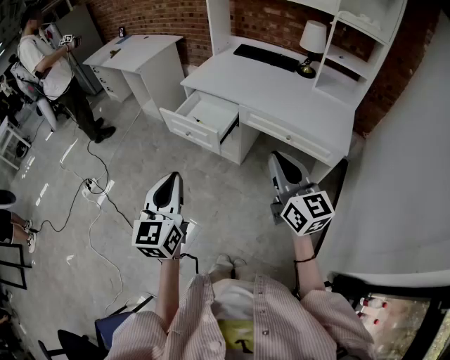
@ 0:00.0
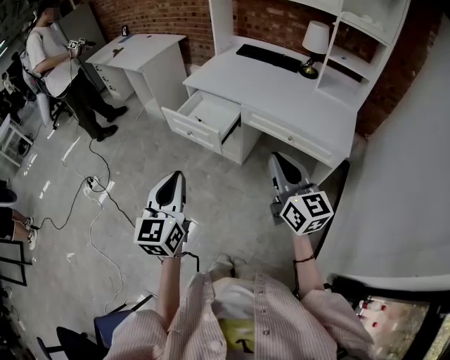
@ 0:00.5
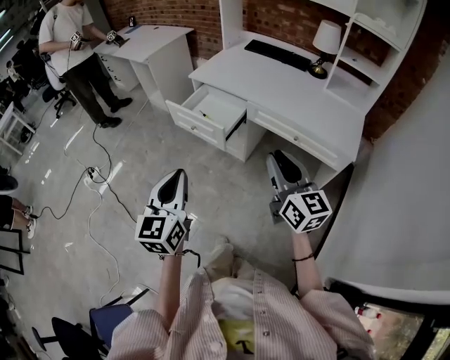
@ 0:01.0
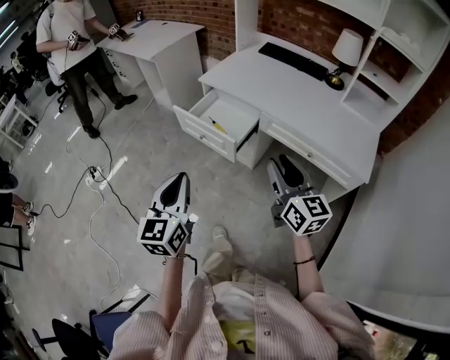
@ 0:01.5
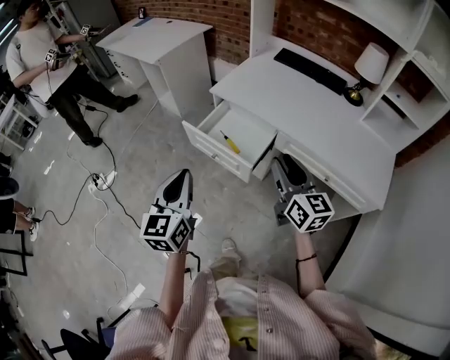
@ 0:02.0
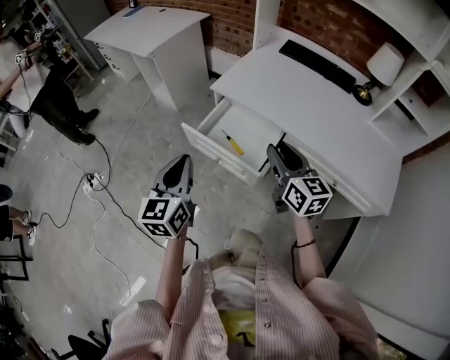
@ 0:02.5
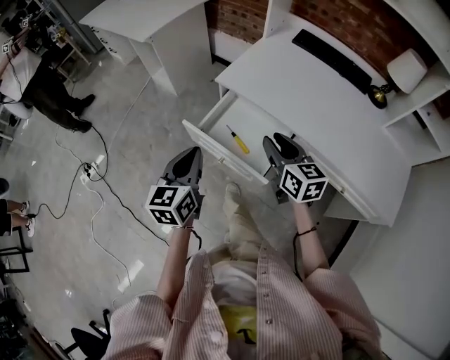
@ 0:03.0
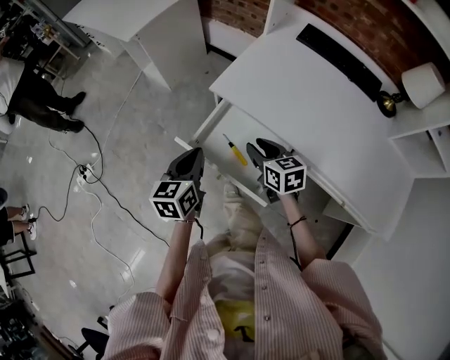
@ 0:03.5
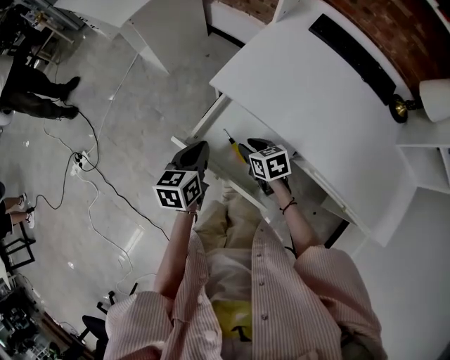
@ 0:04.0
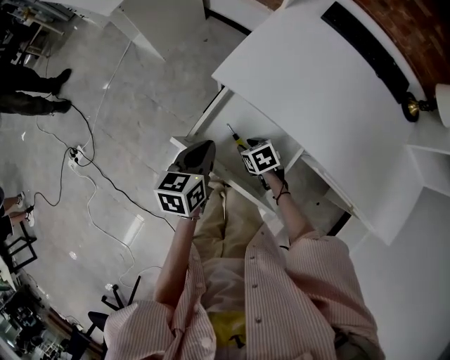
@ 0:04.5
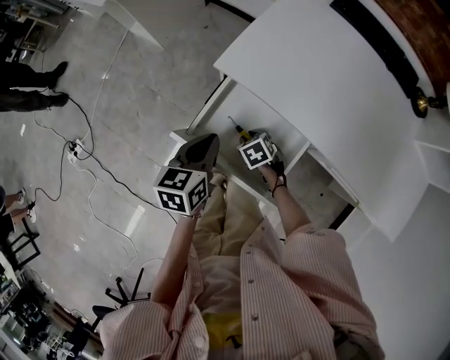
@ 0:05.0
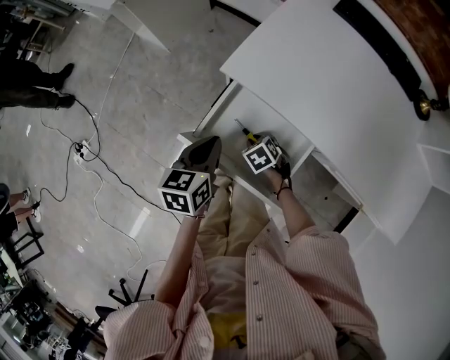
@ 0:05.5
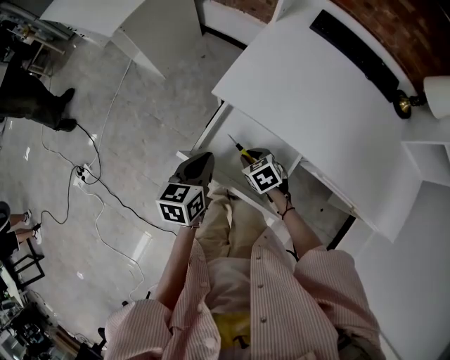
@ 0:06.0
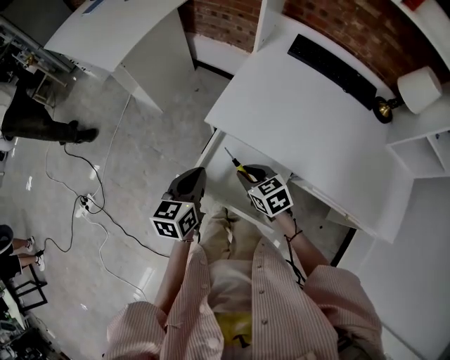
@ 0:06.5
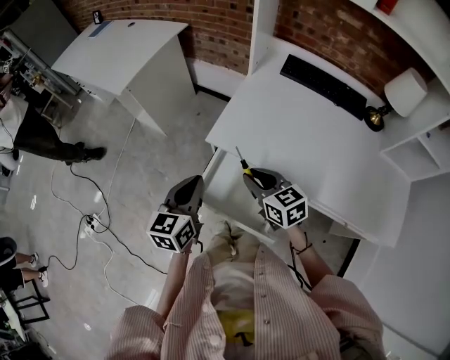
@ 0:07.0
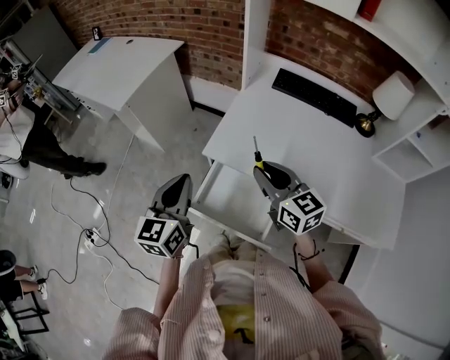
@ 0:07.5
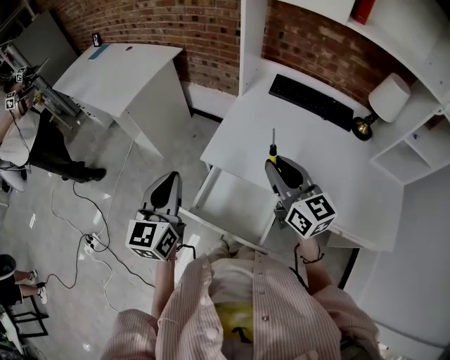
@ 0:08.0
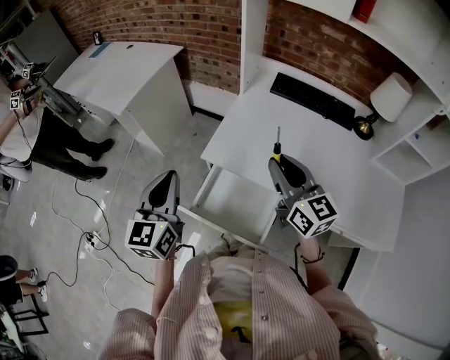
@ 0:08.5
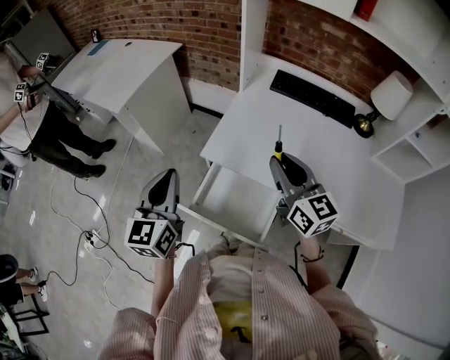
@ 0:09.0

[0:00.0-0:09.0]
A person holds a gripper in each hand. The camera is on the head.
0:00.0 to 0:02.0: Both grippers move forward, about 25 cm. The right gripper opens up.
0:02.0 to 0:04.5: The left gripper shifts some 40 cm forward and downward, and changes its angle by approximately 40 degrees. Meanwhile the right gripper shifts about 50 cm downward and forward, and points its fingers approximately 60 degrees further downward.
0:04.5 to 0:07.0: The left gripper is displaced upward by about 15 cm, and turns by approximately 20 degrees. Meanwhile the right gripper heads upward, covering some 25 cm, and points its fingers some 40 degrees further upward.
0:07.0 to 0:09.0: The left gripper heads upward, covering some 10 cm, while the right gripper shifts approximately 15 cm upward and to the right, and rotates some 30 degrees.

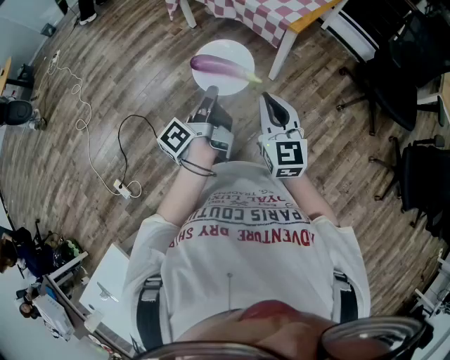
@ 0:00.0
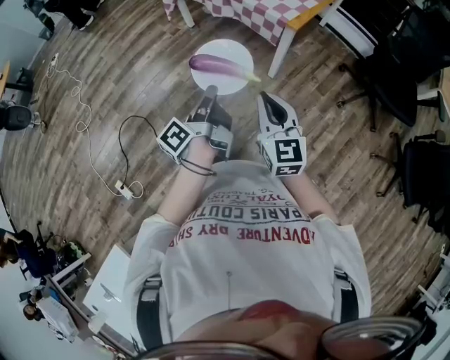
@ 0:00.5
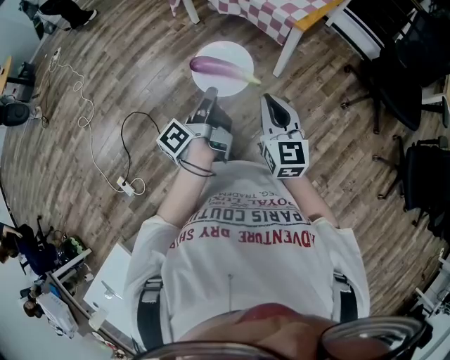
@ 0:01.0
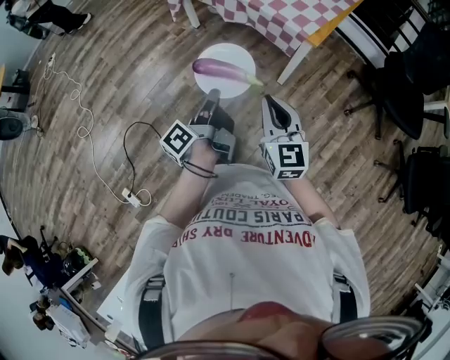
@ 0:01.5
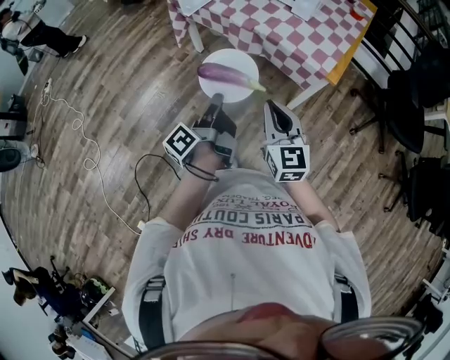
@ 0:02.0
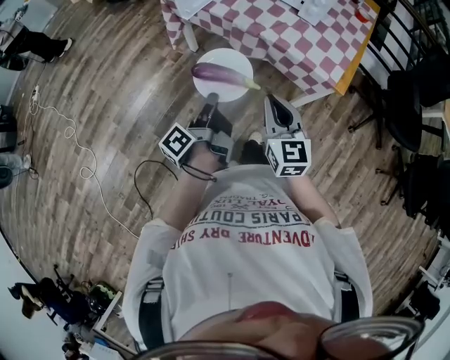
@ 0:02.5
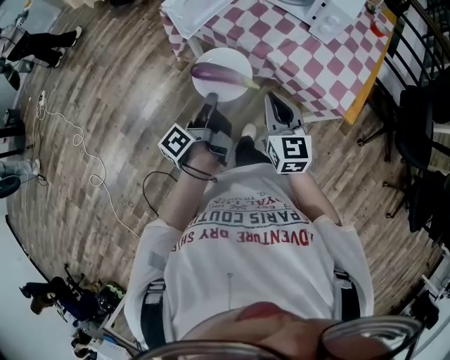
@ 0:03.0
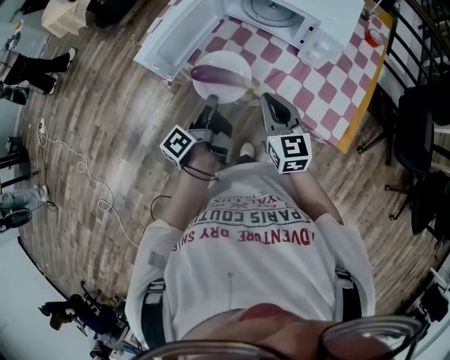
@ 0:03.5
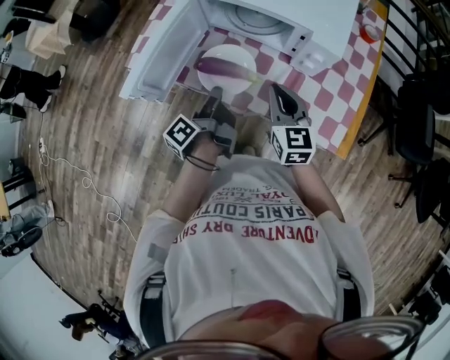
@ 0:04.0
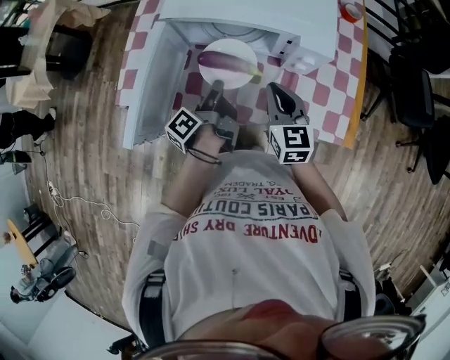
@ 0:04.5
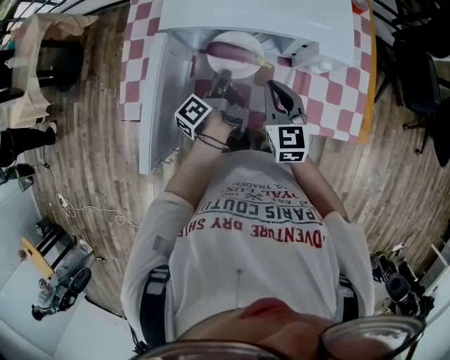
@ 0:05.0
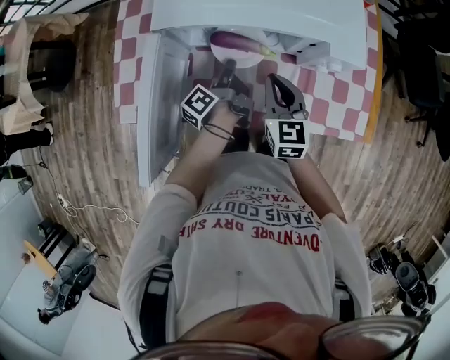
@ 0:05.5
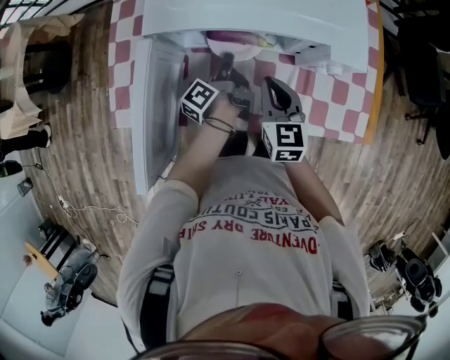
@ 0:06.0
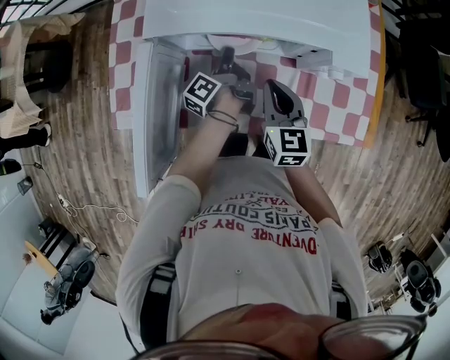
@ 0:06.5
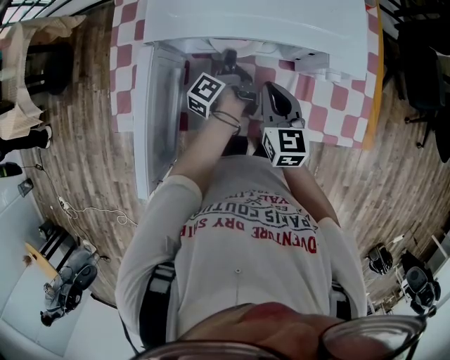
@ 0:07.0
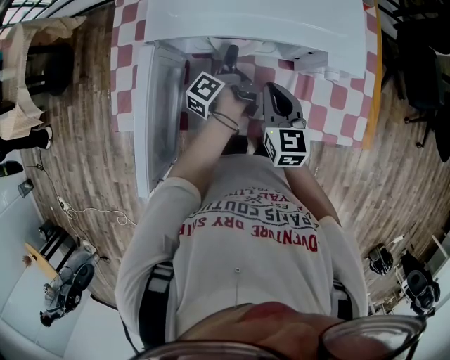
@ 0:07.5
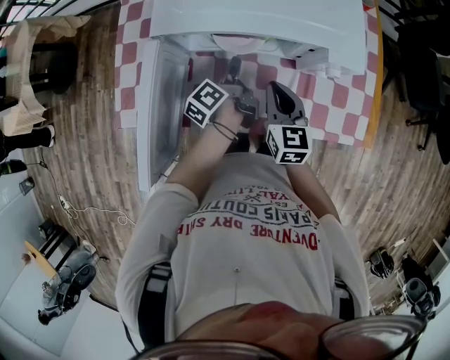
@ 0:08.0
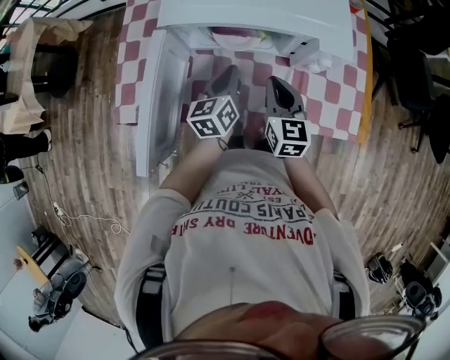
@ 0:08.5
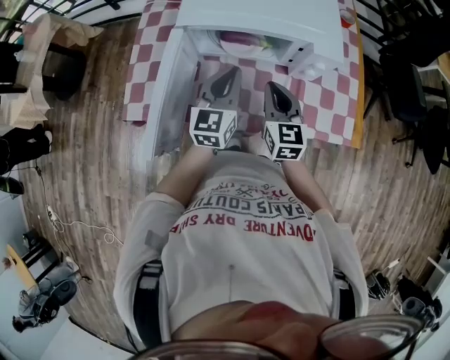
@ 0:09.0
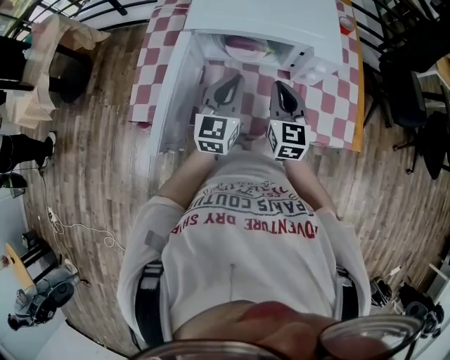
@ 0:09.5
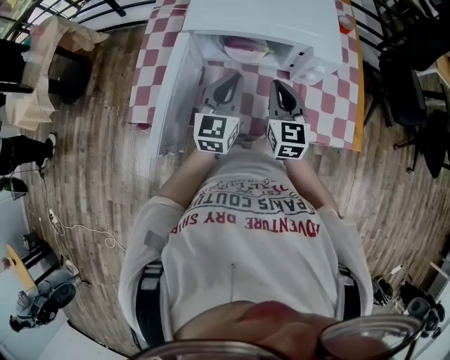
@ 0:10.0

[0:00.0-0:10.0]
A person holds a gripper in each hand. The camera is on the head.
0:00.0 to 0:02.0: The right gripper ends up approximately 30 cm from where it was.
0:02.0 to 0:04.0: The right gripper moves some 50 cm.
0:04.0 to 0:06.0: The right gripper ends up about 15 cm from where it was, and swivels some 20 degrees.
0:08.0 to 0:10.0: The right gripper shifts approximately 10 cm upward.

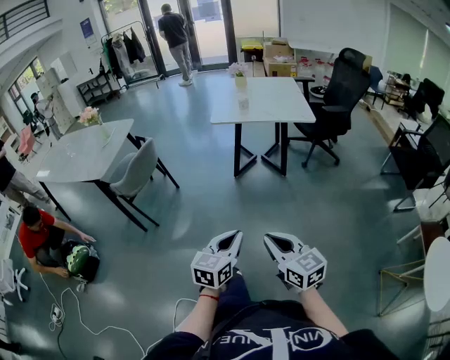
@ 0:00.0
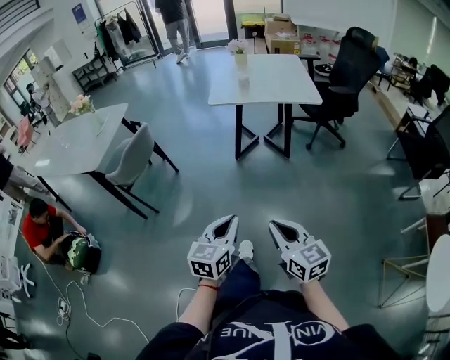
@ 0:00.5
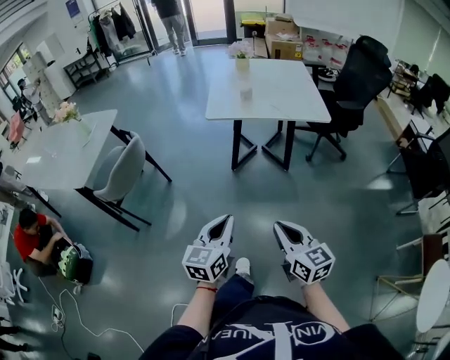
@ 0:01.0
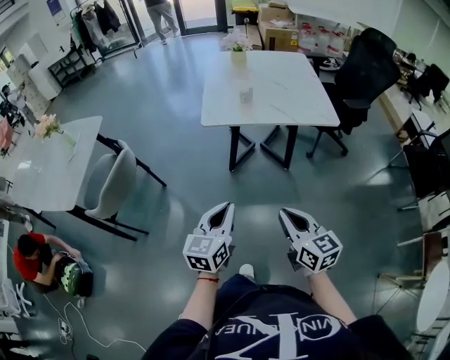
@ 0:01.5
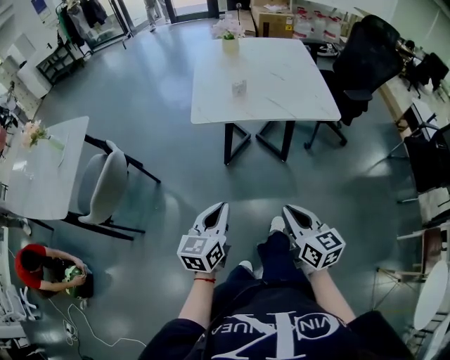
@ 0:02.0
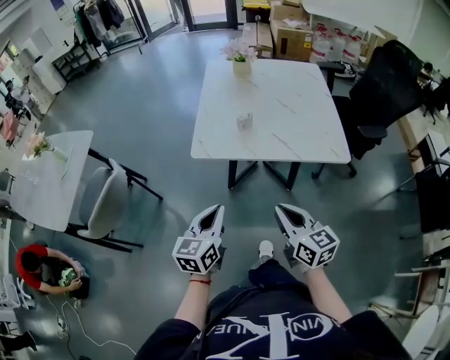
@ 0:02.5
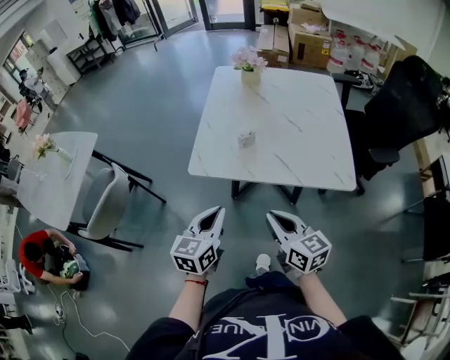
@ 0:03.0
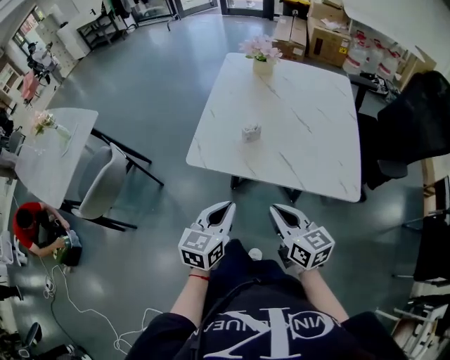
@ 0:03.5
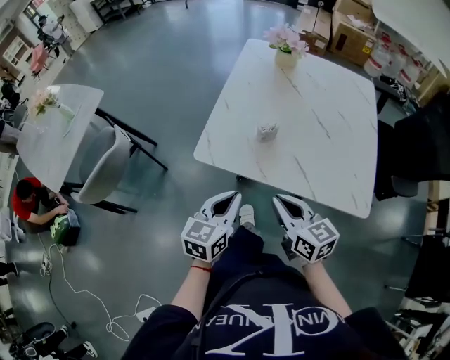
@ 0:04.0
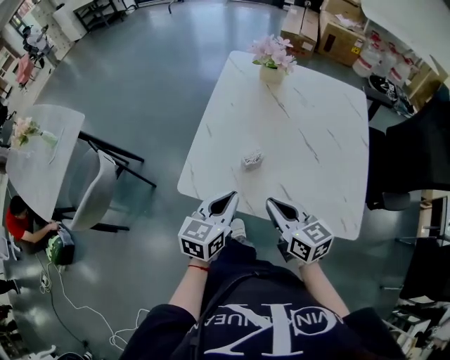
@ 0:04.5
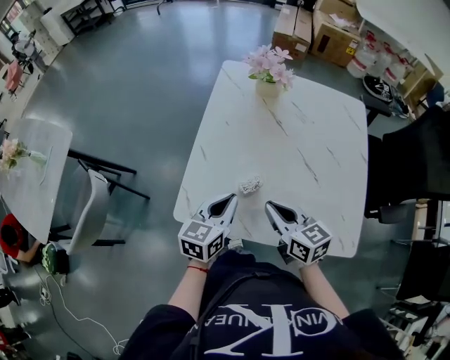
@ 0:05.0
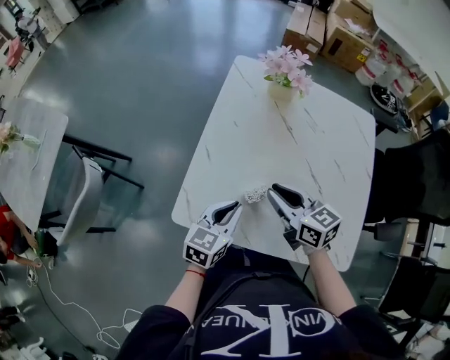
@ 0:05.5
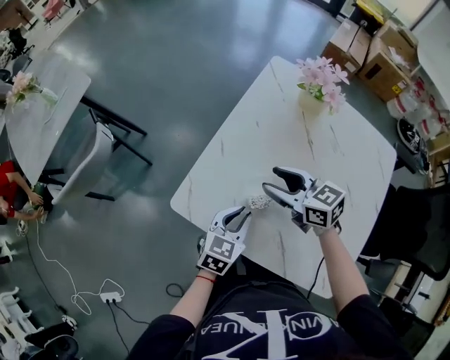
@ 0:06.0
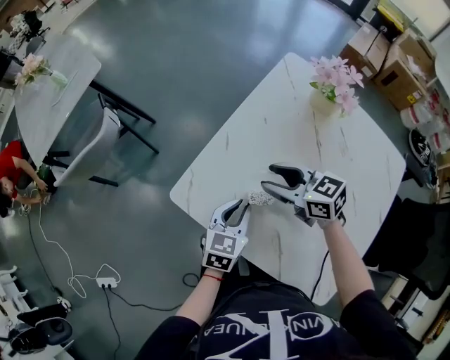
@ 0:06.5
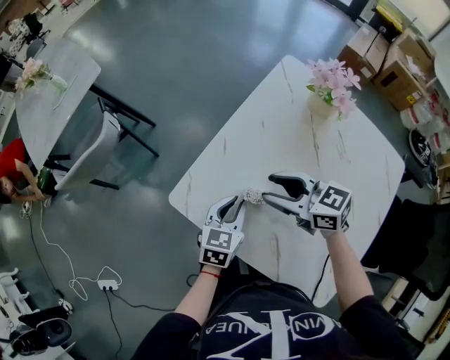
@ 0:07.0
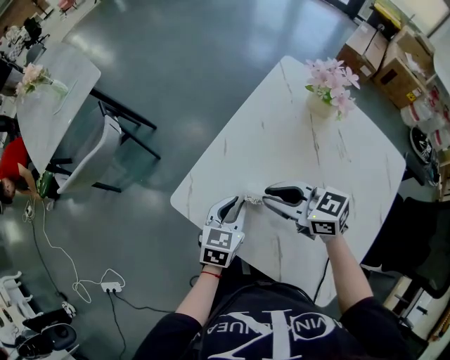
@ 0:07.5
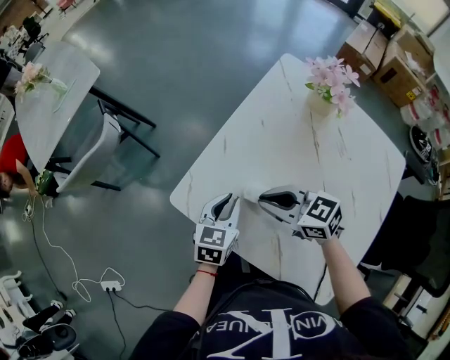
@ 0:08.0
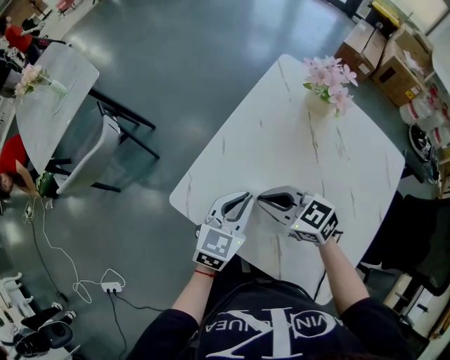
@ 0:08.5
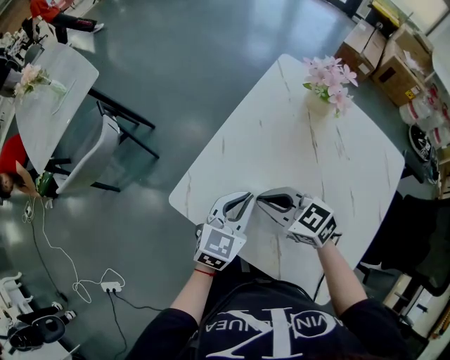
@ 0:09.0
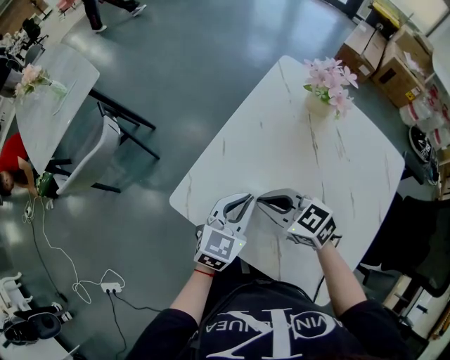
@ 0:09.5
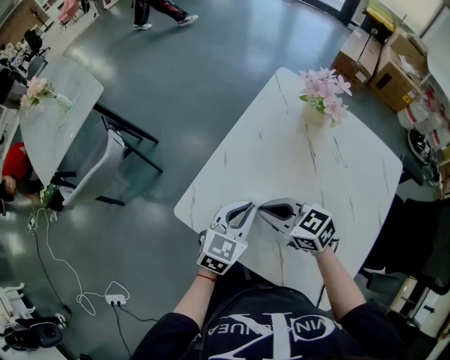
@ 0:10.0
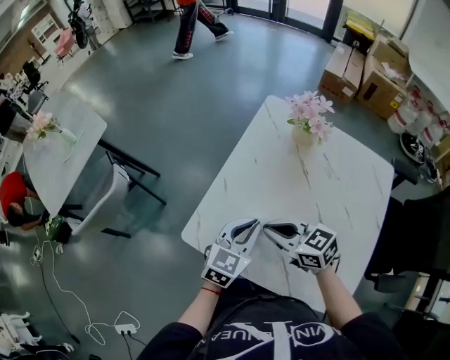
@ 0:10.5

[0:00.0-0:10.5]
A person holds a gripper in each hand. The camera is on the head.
0:00.0 to 0:02.0: The pair of grippers is taken forward, approximately 40 cm.
0:02.0 to 0:04.0: The left gripper travels forward and to the right by roughly 30 cm. The right gripper goes roughly 35 cm forward, and rotates about 30 degrees.
0:04.0 to 0:06.5: The right gripper moves some 30 cm, changes its angle by roughly 50 degrees, and opens. Meanwhile the left gripper moves about 25 cm, and rotates roughly 20 degrees.
0:06.5 to 0:08.5: The left gripper shifts roughly 5 cm upward; the right gripper changes place by about 5 cm, and closes its fingers.
0:08.5 to 0:10.5: The grippers make only small movements.
